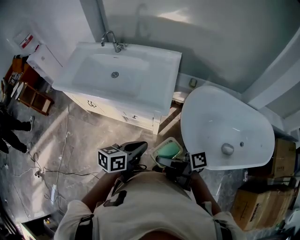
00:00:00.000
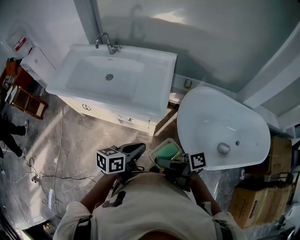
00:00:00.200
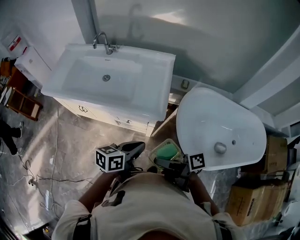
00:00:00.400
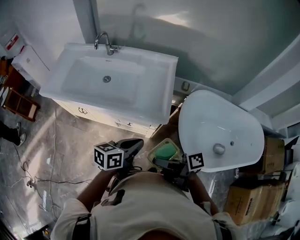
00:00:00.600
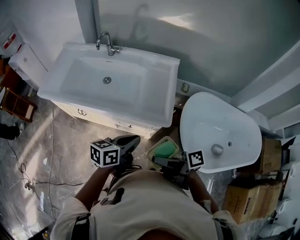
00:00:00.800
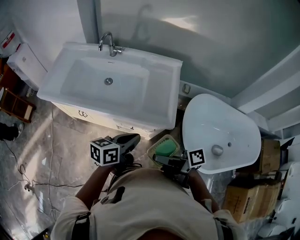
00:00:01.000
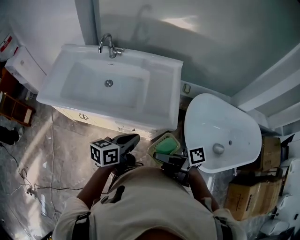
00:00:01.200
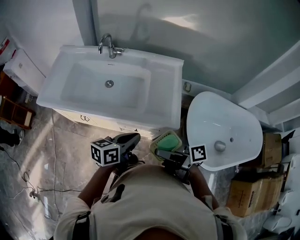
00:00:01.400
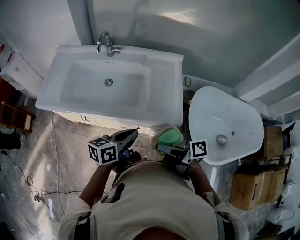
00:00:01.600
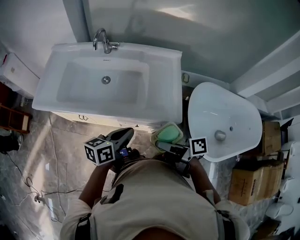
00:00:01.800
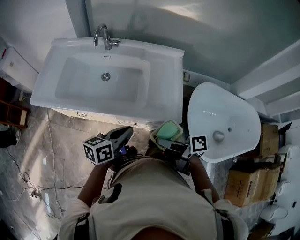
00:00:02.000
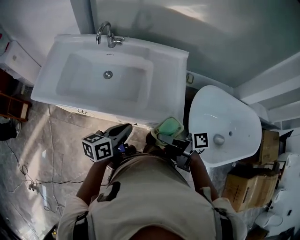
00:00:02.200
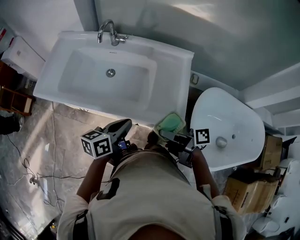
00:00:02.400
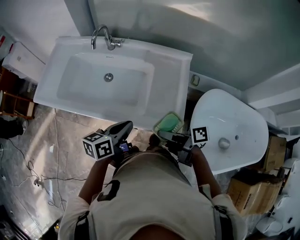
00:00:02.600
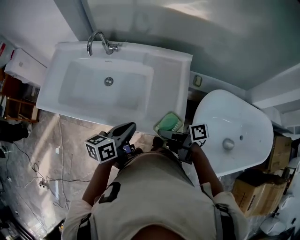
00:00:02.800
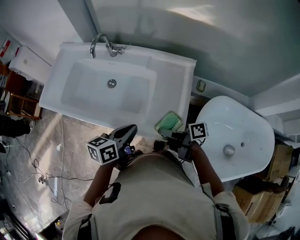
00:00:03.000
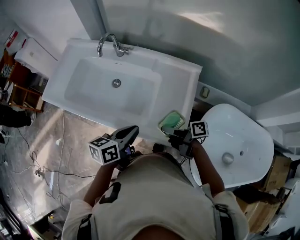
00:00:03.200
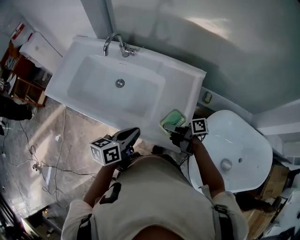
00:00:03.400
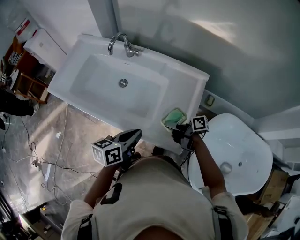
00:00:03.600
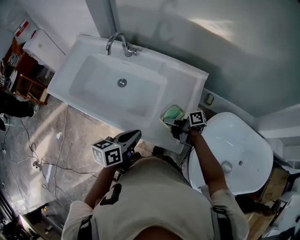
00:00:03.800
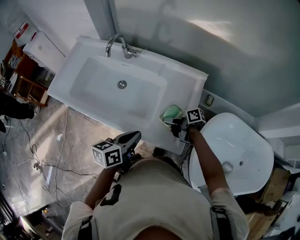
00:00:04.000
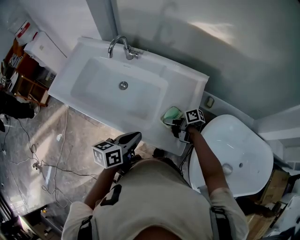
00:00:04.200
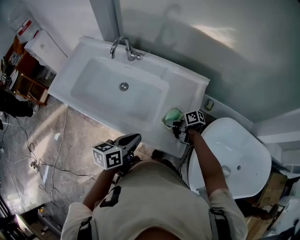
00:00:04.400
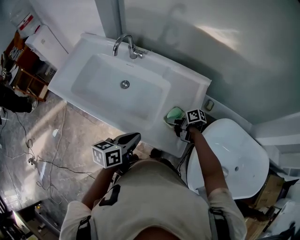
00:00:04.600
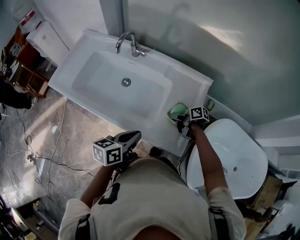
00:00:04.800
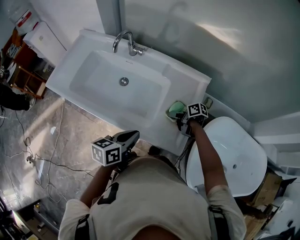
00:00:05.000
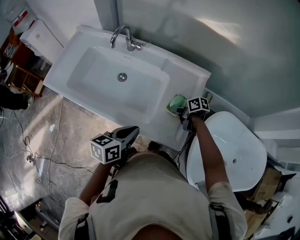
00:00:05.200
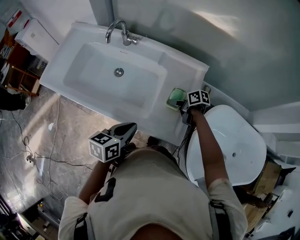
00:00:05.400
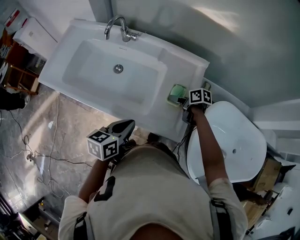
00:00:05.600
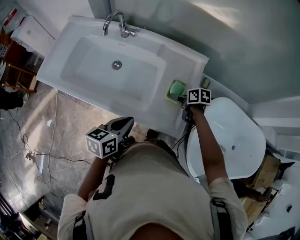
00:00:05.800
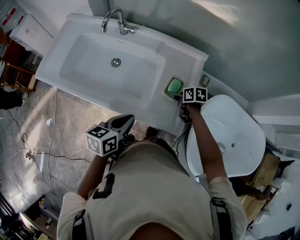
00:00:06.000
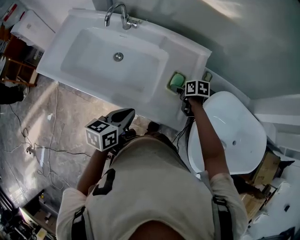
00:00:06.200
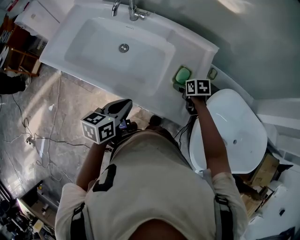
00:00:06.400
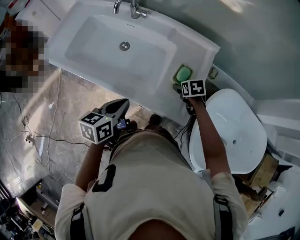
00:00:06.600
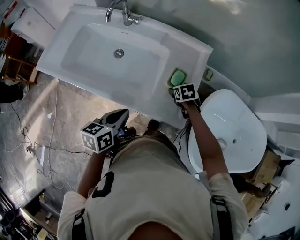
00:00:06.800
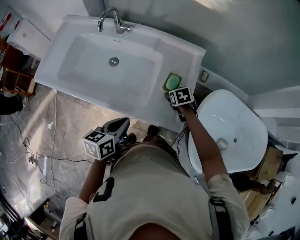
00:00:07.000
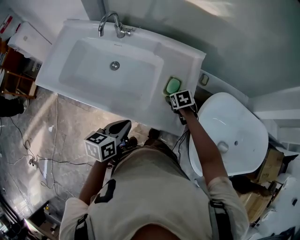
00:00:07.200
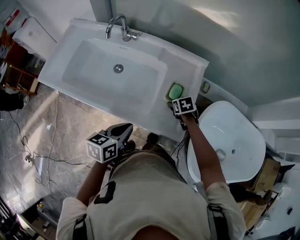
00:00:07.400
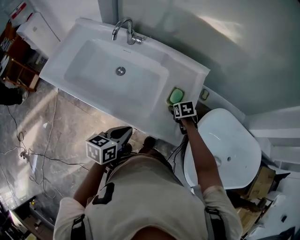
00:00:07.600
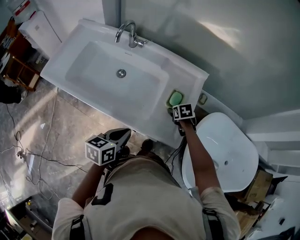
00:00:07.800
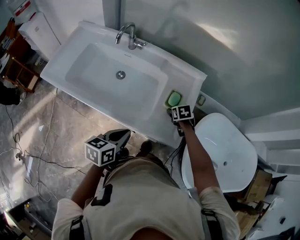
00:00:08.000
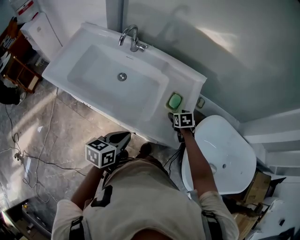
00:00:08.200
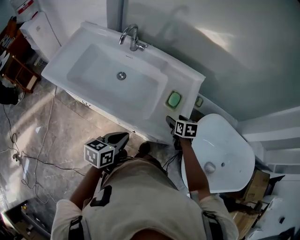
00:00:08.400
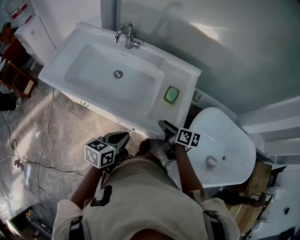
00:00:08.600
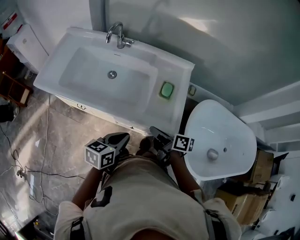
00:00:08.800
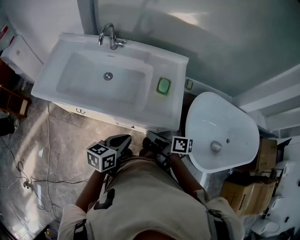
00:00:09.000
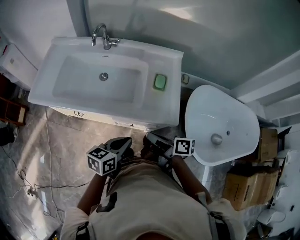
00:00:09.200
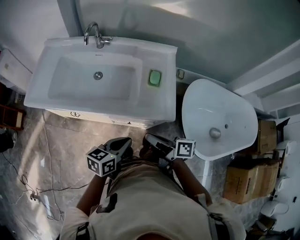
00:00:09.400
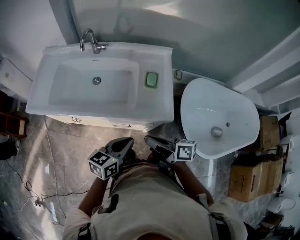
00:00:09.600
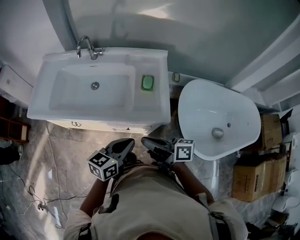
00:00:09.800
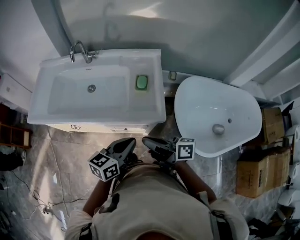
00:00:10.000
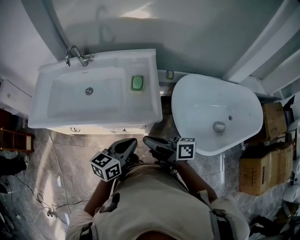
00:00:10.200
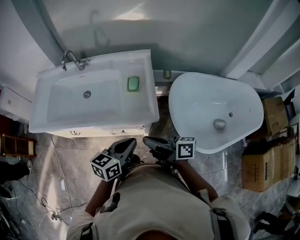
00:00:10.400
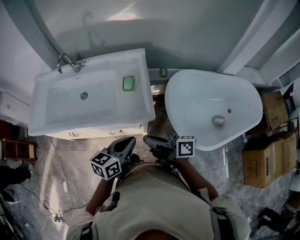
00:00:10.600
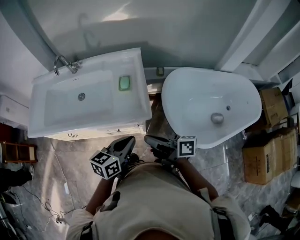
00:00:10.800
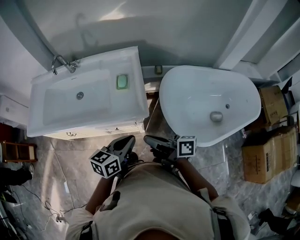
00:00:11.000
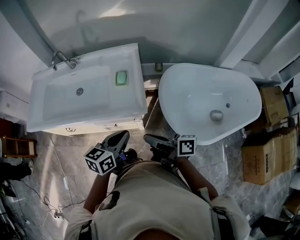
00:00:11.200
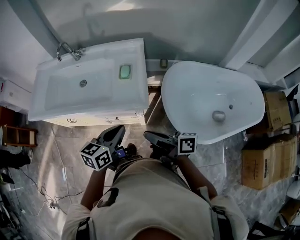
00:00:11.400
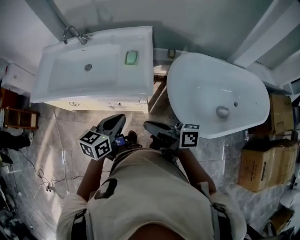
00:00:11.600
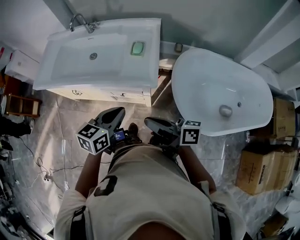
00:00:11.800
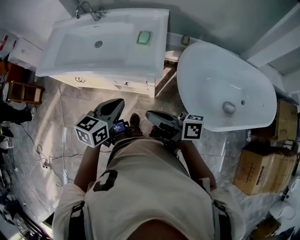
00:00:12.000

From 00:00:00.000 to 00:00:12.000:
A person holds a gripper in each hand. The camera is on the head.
From 00:00:00.000 to 00:00:01.600: The left gripper moves some 25 cm.
From 00:00:01.600 to 00:00:03.000: The left gripper shifts by about 10 cm.
From 00:00:07.600 to 00:00:09.000: The left gripper ends up roughly 10 cm from where it was.
From 00:00:09.000 to 00:00:10.400: The left gripper shifts by some 15 cm.
From 00:00:10.400 to 00:00:12.000: The left gripper moves roughly 5 cm.

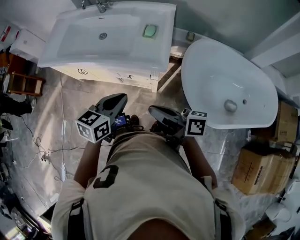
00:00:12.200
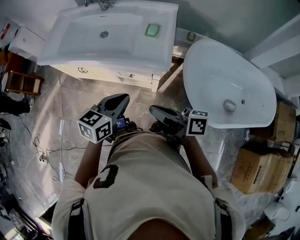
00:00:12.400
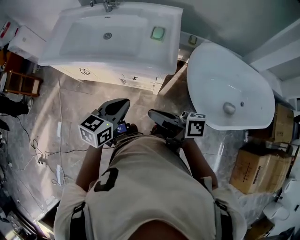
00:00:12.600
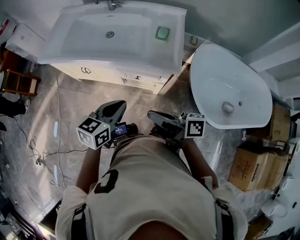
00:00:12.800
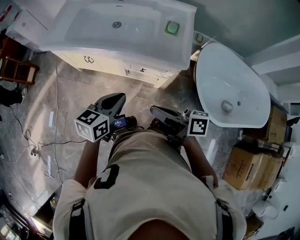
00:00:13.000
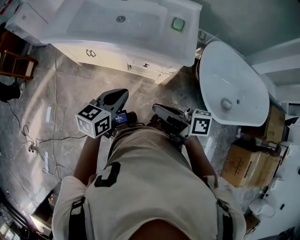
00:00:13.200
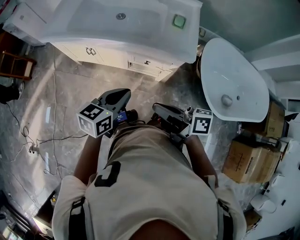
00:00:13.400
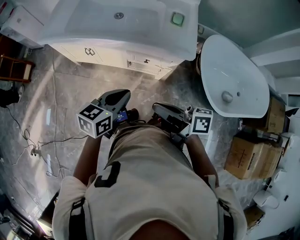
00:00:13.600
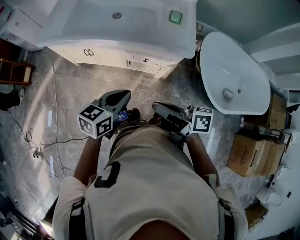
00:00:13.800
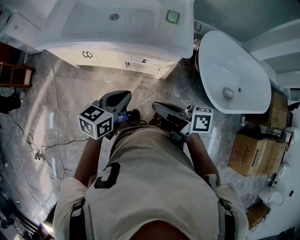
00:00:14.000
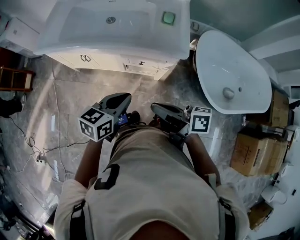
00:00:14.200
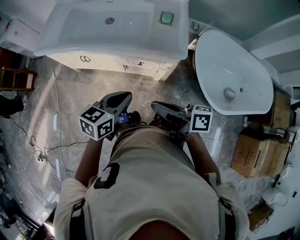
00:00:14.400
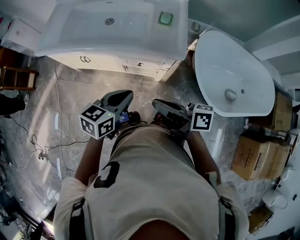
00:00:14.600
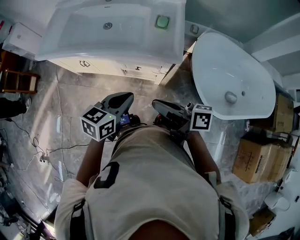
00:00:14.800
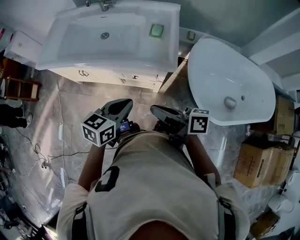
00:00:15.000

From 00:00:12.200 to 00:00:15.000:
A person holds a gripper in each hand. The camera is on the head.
From 00:00:12.200 to 00:00:13.600: The left gripper shifts by approximately 20 cm.
From 00:00:13.600 to 00:00:15.000: The left gripper moves some 10 cm.

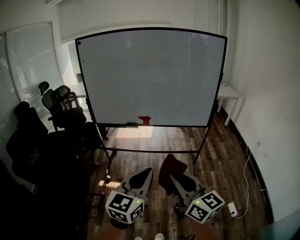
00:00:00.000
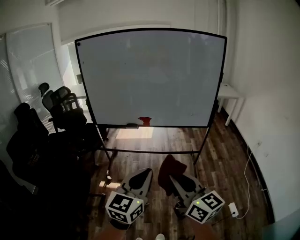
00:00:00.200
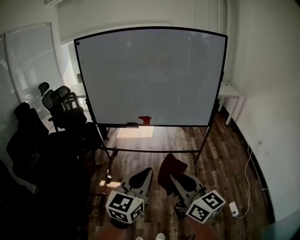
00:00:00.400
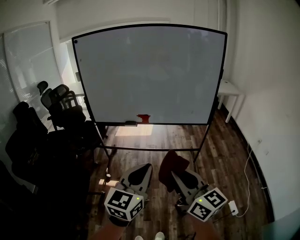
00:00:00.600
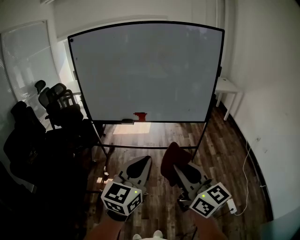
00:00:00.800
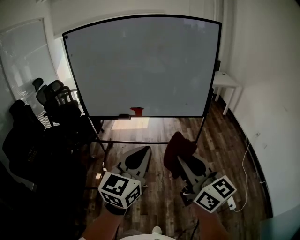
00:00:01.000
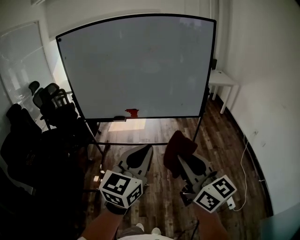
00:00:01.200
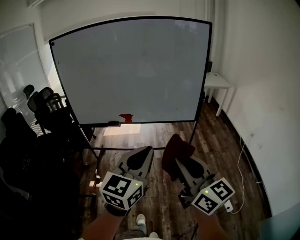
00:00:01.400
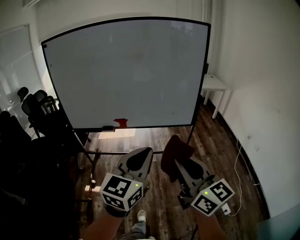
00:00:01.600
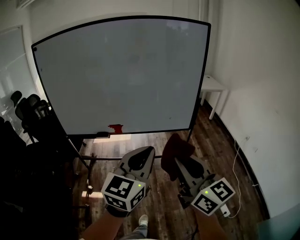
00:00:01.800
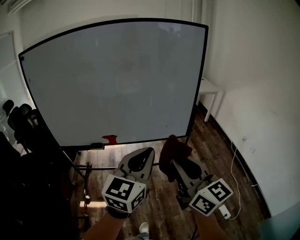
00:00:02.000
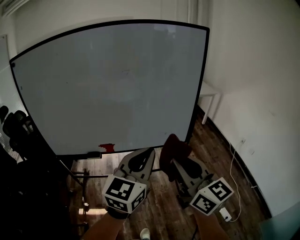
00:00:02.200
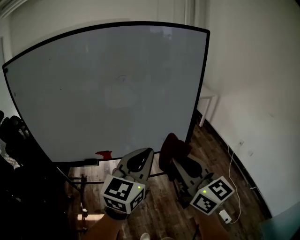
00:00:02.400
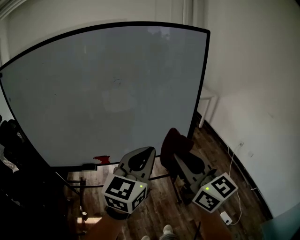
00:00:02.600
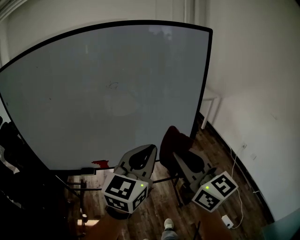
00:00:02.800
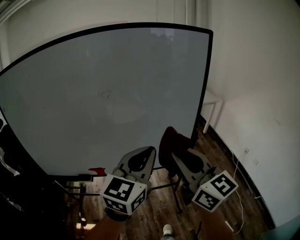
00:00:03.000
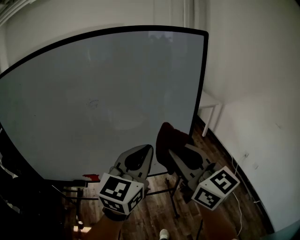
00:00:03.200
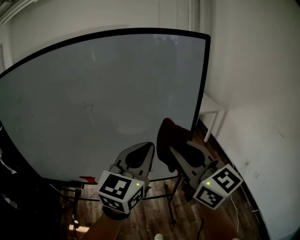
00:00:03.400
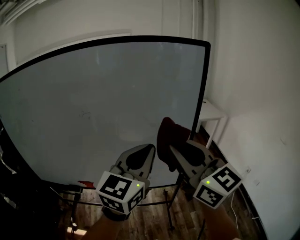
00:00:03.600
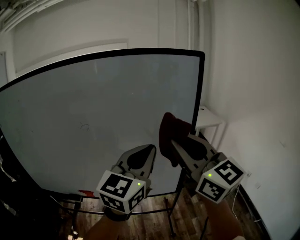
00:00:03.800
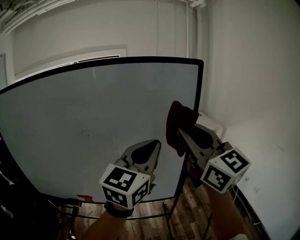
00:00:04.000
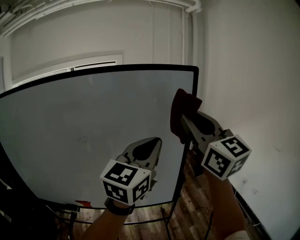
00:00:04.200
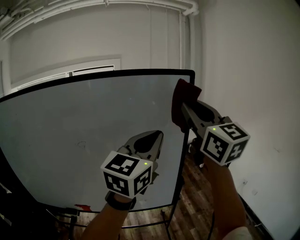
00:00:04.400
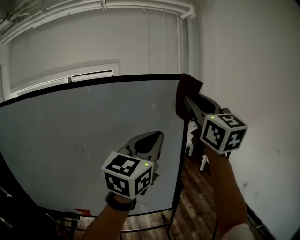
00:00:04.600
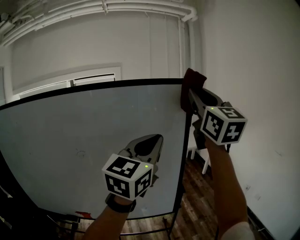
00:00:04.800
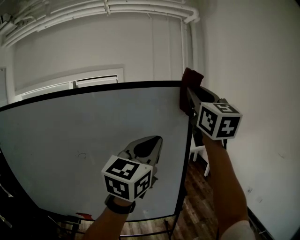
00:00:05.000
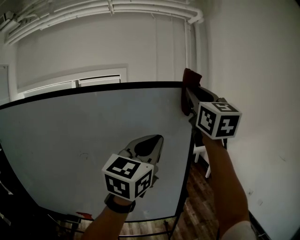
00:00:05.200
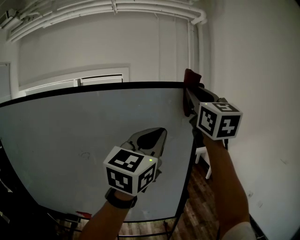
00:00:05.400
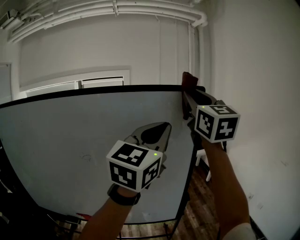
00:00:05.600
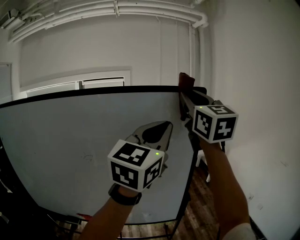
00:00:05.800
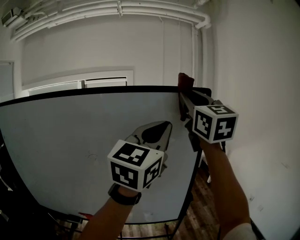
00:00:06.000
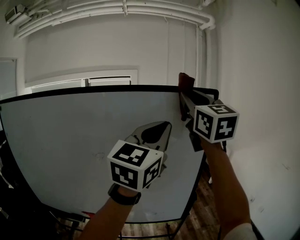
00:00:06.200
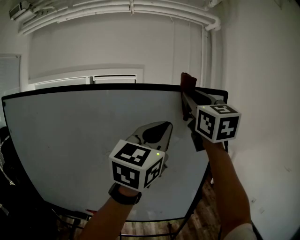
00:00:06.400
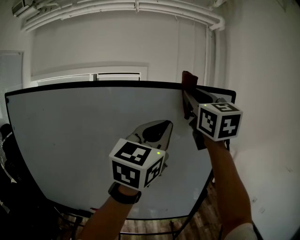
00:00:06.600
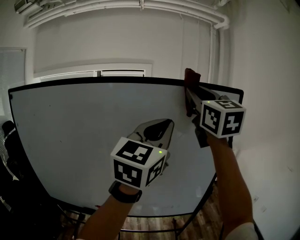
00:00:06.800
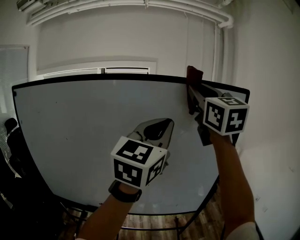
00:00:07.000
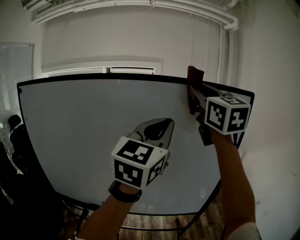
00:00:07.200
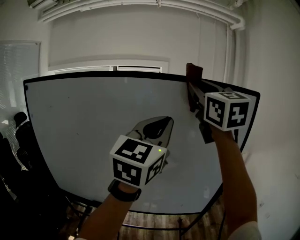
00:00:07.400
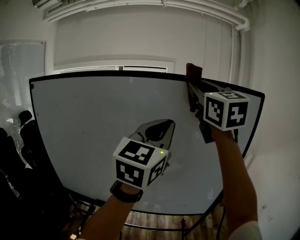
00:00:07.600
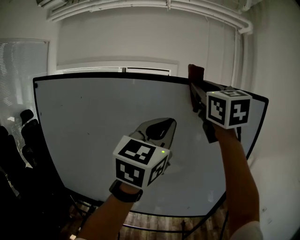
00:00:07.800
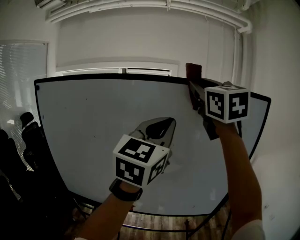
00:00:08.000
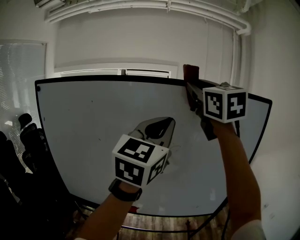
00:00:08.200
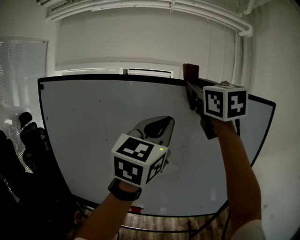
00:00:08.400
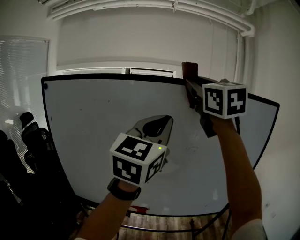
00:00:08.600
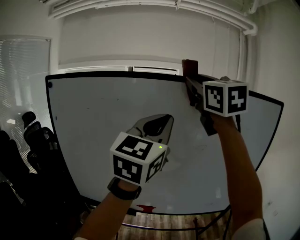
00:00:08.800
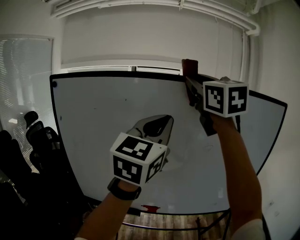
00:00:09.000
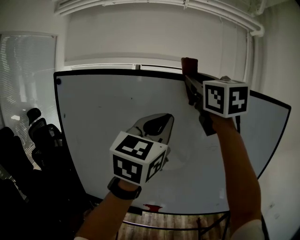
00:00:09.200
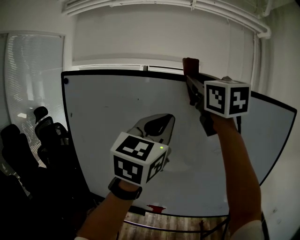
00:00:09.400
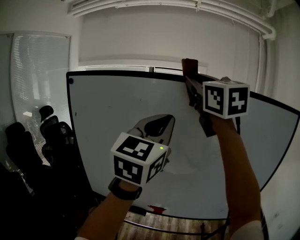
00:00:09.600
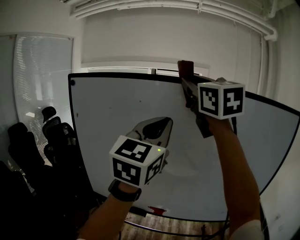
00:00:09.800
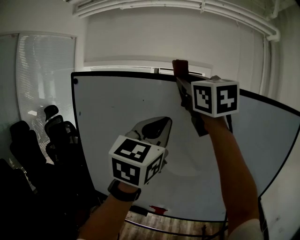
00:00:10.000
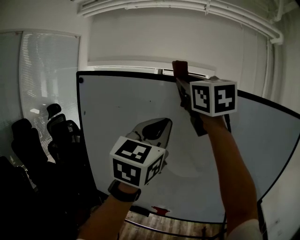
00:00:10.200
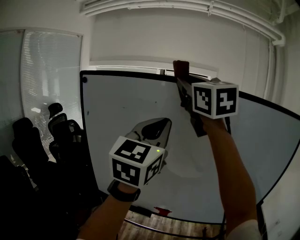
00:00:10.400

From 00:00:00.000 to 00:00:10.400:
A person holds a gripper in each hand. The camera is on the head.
From 00:00:00.000 to 00:00:01.400: The two grippers go some 15 cm to the right and forward.
From 00:00:01.400 to 00:00:03.000: Both grippers are carried forward, approximately 40 cm.
From 00:00:03.000 to 00:00:04.400: The two grippers go approximately 30 cm upward, forward and to the right. The right gripper changes its angle by approximately 20 degrees.
From 00:00:04.400 to 00:00:06.000: The left gripper moves upward, some 10 cm. Meanwhile the right gripper heads forward and upward, covering some 10 cm.
From 00:00:06.000 to 00:00:07.400: The grippers both shift to the left by roughly 20 cm.
From 00:00:07.400 to 00:00:09.000: The two grippers go approximately 25 cm to the left.
From 00:00:09.000 to 00:00:10.400: Both grippers travel together to the left, approximately 10 cm.
